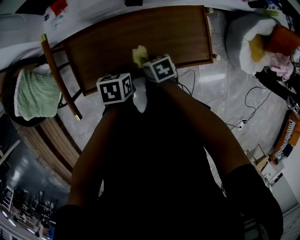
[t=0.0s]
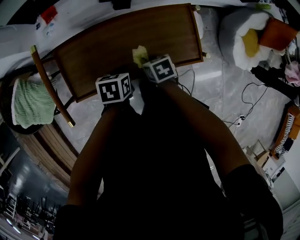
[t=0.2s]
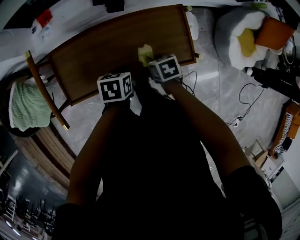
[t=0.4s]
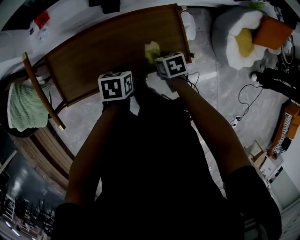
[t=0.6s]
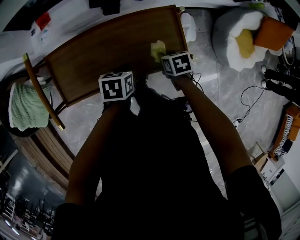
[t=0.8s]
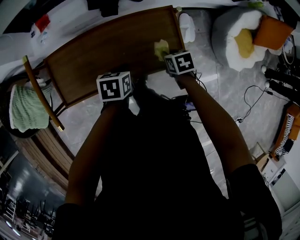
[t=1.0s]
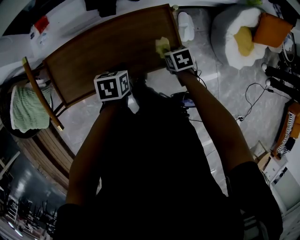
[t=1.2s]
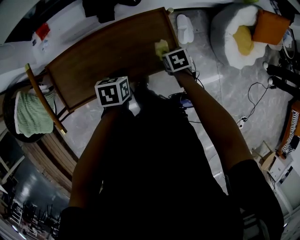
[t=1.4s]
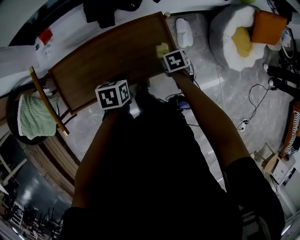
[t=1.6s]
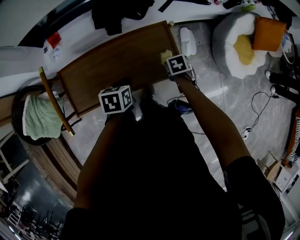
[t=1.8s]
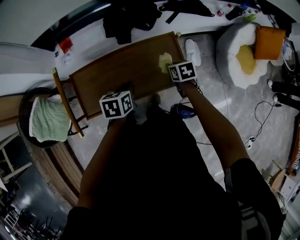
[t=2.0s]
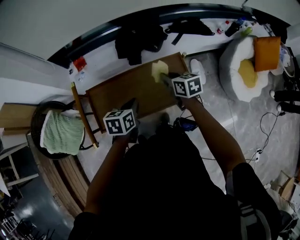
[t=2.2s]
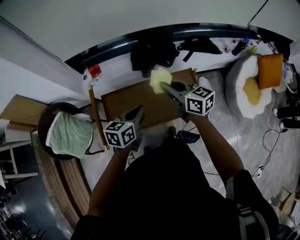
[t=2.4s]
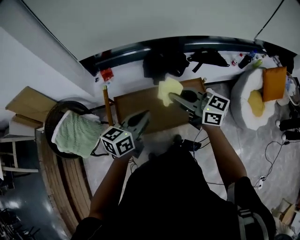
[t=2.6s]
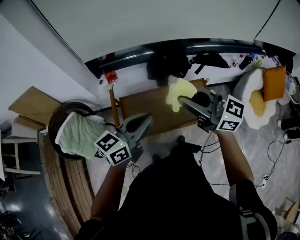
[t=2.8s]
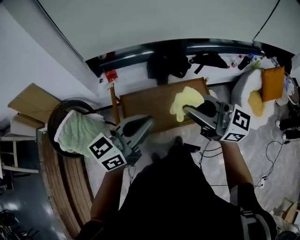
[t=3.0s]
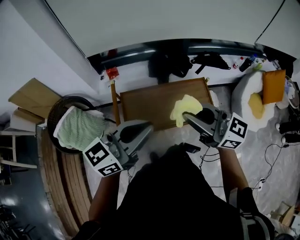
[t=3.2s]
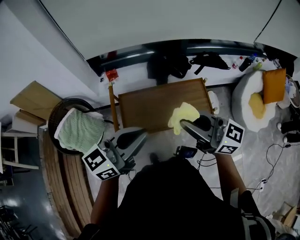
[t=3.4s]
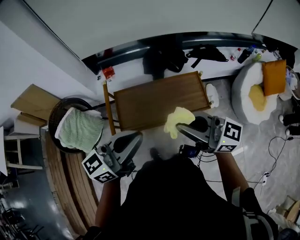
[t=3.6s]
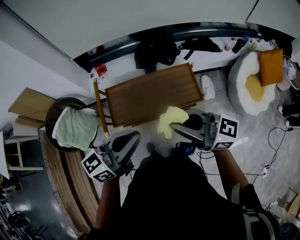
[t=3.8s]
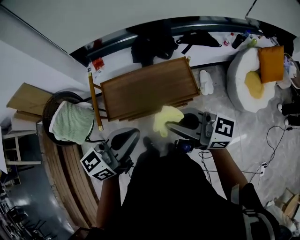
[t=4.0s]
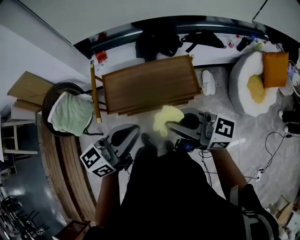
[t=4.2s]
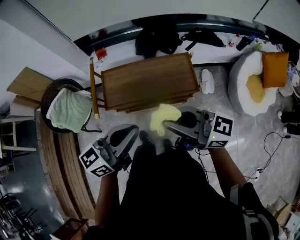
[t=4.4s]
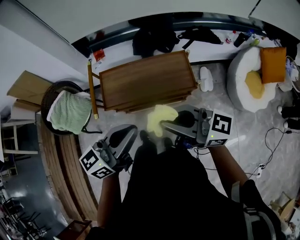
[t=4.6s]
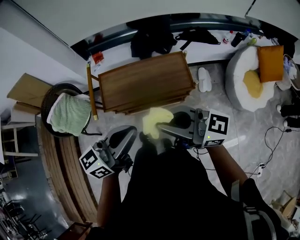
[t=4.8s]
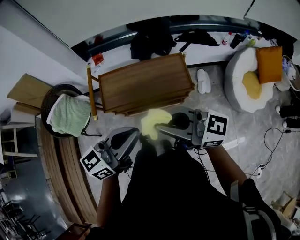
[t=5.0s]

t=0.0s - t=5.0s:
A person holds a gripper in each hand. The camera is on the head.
t=0.0s - t=1.6s: The left gripper is displaced to the right by some 15 cm. Meanwhile the right gripper moves to the right, roughly 25 cm.
t=1.6s - t=3.4s: The right gripper moves upward and to the left, approximately 50 cm, and tilts its fingers approximately 80 degrees upward. Meanwhile the left gripper shifts approximately 50 cm upward, to the left and backward, and angles its fingers upward, by approximately 60 degrees.
t=3.4s - t=5.0s: The right gripper shifts by about 15 cm, while the left gripper moves some 15 cm.

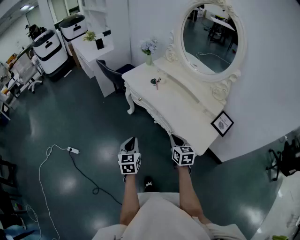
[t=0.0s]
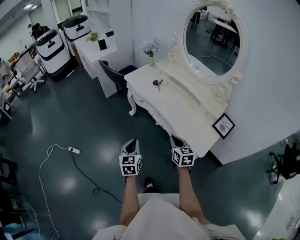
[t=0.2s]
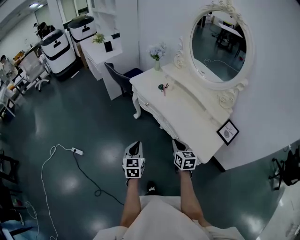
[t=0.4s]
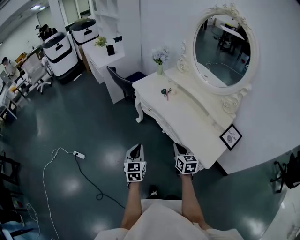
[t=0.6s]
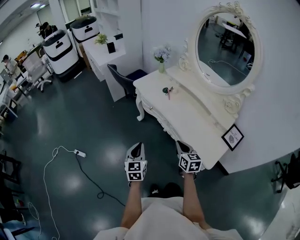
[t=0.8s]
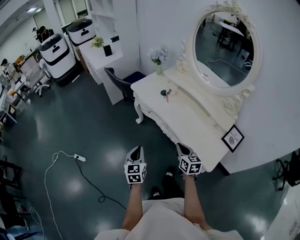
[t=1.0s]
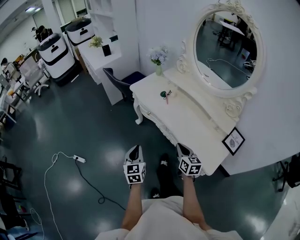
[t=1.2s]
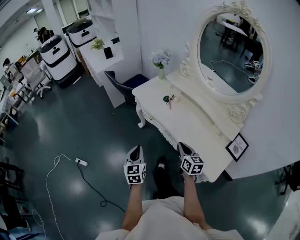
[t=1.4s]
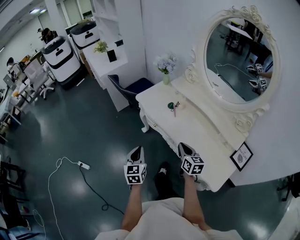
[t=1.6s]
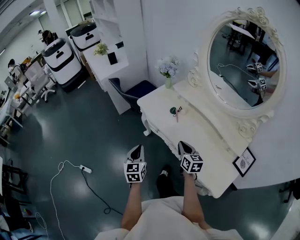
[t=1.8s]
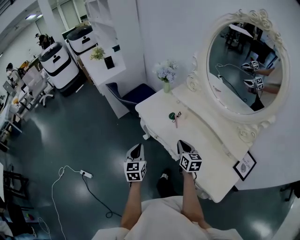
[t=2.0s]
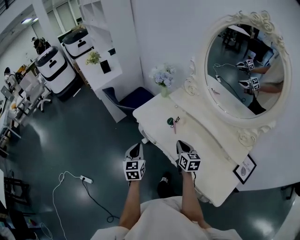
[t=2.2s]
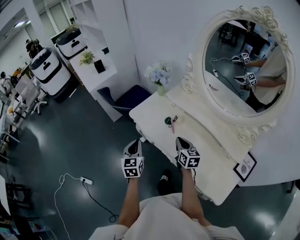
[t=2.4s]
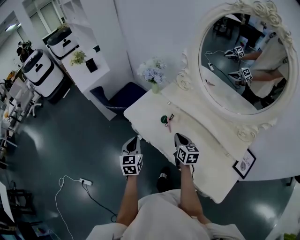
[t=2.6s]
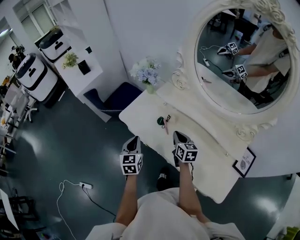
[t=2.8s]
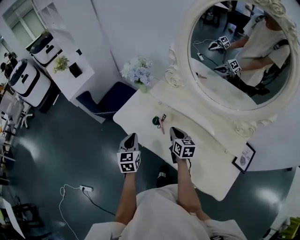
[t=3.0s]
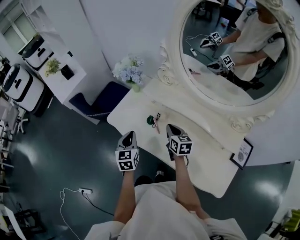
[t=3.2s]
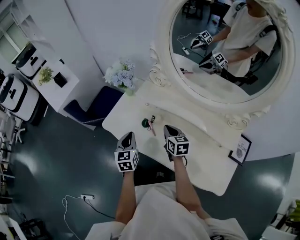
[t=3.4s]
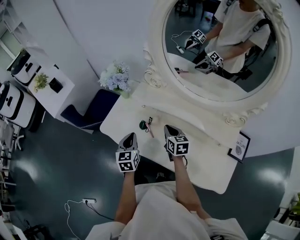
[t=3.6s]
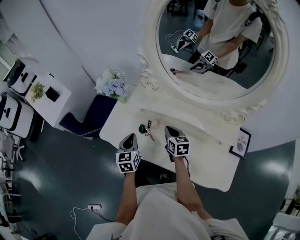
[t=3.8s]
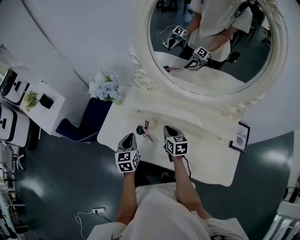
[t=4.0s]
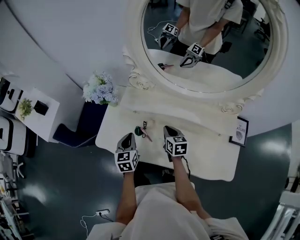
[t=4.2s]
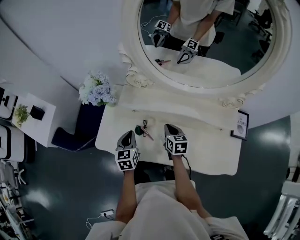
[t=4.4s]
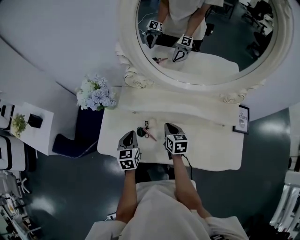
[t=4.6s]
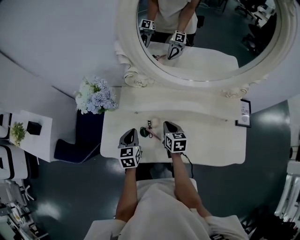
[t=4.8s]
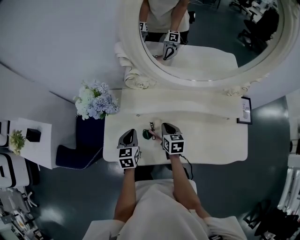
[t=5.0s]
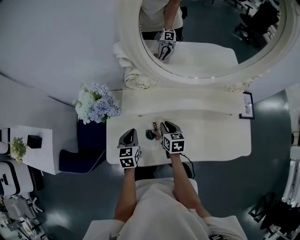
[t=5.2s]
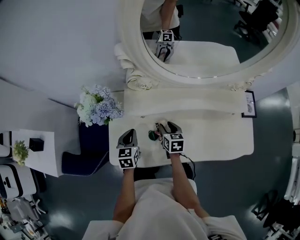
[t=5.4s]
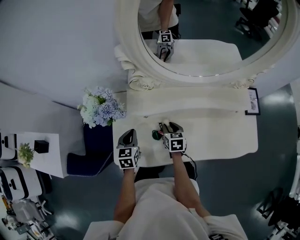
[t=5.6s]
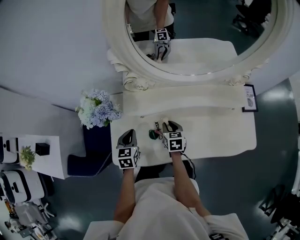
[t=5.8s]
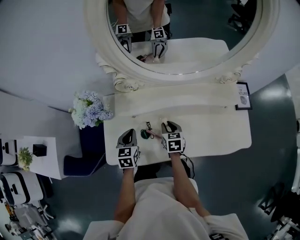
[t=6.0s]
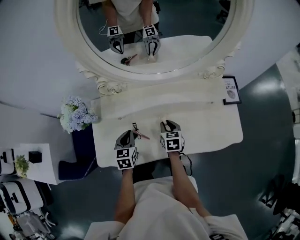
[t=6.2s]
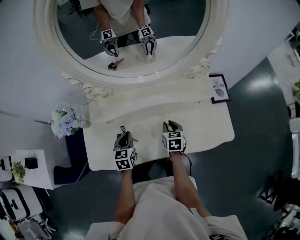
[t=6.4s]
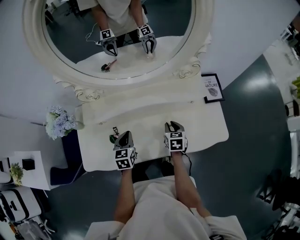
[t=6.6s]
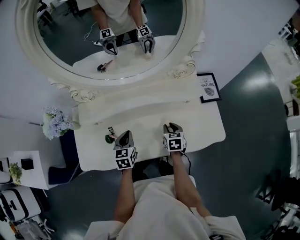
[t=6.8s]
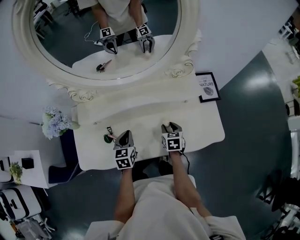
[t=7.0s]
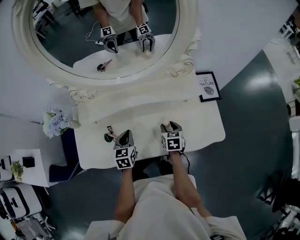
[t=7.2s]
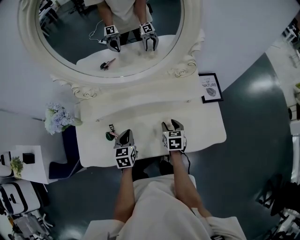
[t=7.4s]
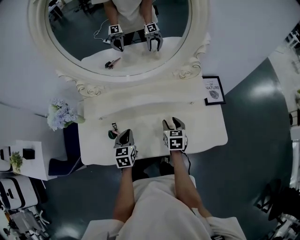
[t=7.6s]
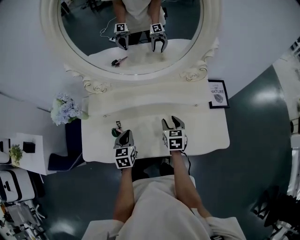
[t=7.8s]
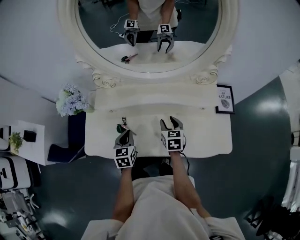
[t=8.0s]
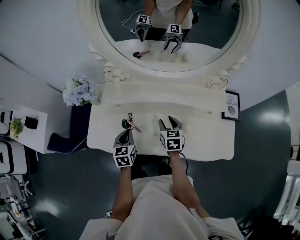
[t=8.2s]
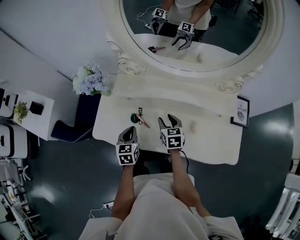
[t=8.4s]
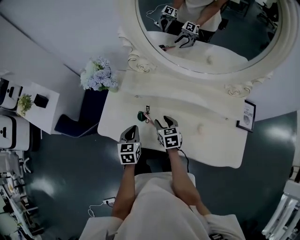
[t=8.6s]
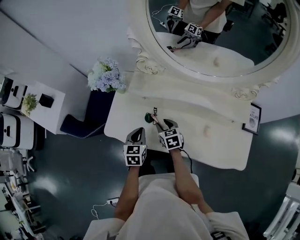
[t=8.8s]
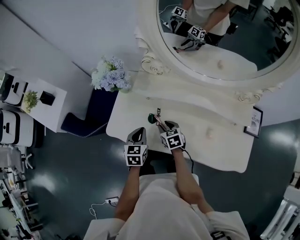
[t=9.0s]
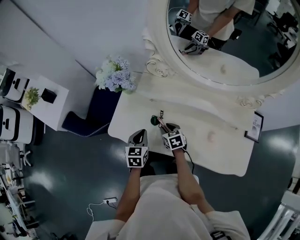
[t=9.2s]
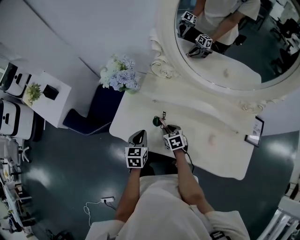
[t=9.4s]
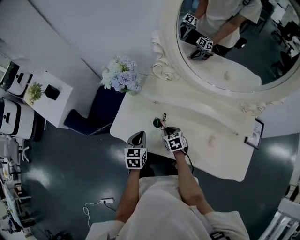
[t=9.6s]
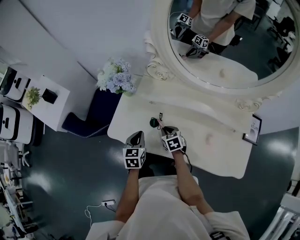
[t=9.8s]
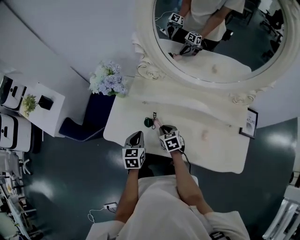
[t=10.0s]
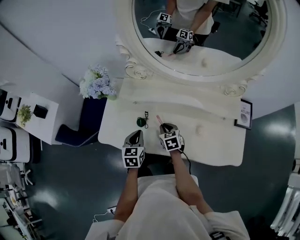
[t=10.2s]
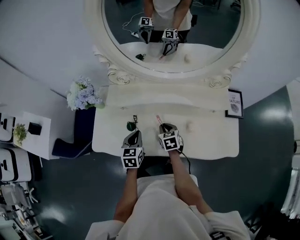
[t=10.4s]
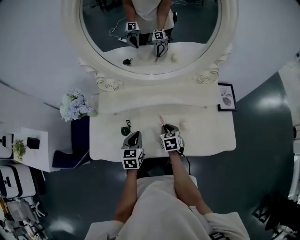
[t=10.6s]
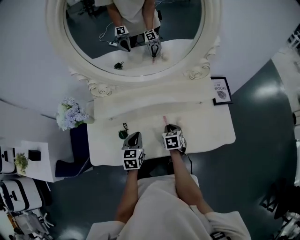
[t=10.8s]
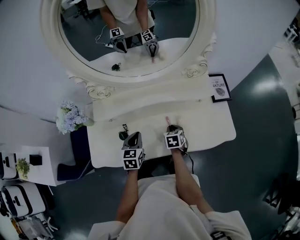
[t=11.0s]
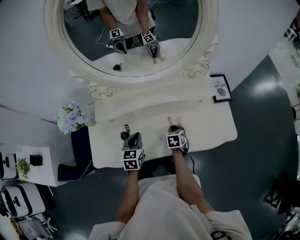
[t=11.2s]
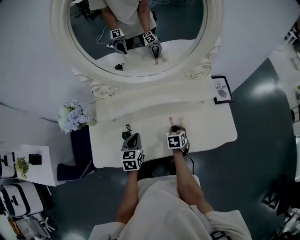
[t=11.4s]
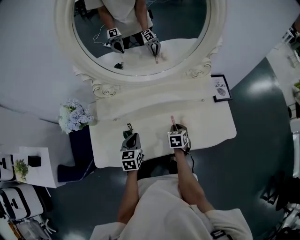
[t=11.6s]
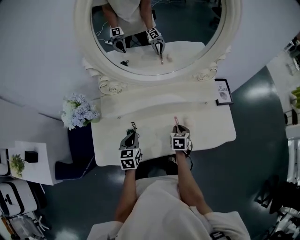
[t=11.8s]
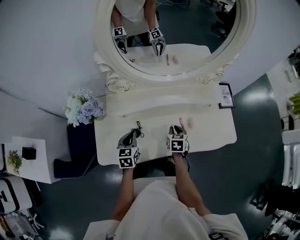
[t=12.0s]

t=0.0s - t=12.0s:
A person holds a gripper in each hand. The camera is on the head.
t=0.0s - t=1.6s: The two grippers go approximately 20 cm forward.
t=1.6s - t=3.0s: Both grippers move forward, roughly 30 cm.
t=3.0s - t=4.4s: The right gripper is displaced to the right and downward by approximately 10 cm, and rotates some 20 degrees. Meanwhile the left gripper is displaced forward and to the right by some 15 cm, and swivels roughly 20 degrees.
t=4.4s - t=6.0s: The right gripper moves approximately 10 cm to the left and comes back; the left gripper is displaced forward by some 5 cm, goes to the left and returns, approximately 10 cm each way, and changes its angle by some 20 degrees.
t=6.0s - t=7.6s: The grippers both shift to the right by some 20 cm. The right gripper opens its fingers.
t=7.6s - t=9.0s: The left gripper changes place by some 20 cm. Meanwhile the right gripper ends up approximately 30 cm from where it was, and turns by about 40 degrees.
t=9.0s - t=10.4s: The grippers both shift to the right by roughly 10 cm. The right gripper closes up.
t=10.4s - t=12.0s: The left gripper ends up roughly 10 cm from where it was. Meanwhile the right gripper changes its angle by about 30 degrees.

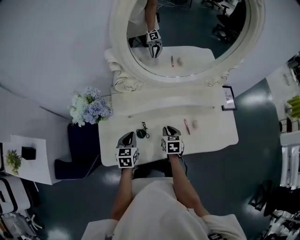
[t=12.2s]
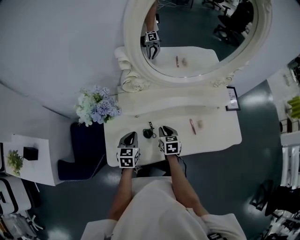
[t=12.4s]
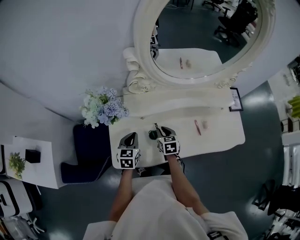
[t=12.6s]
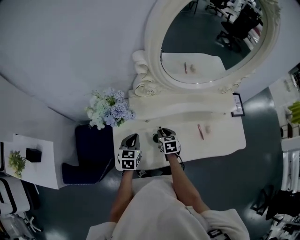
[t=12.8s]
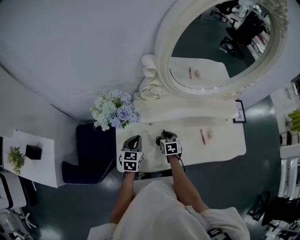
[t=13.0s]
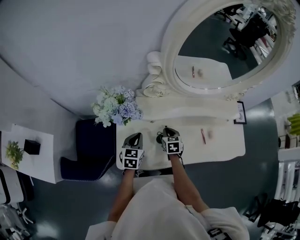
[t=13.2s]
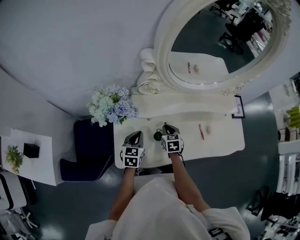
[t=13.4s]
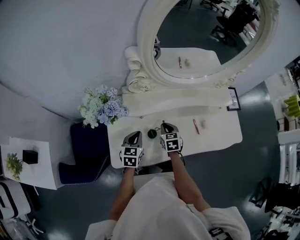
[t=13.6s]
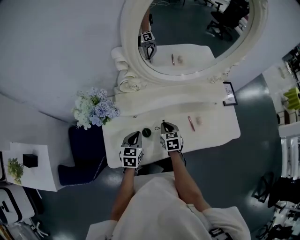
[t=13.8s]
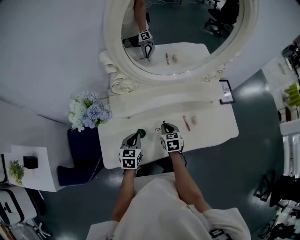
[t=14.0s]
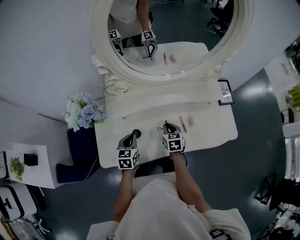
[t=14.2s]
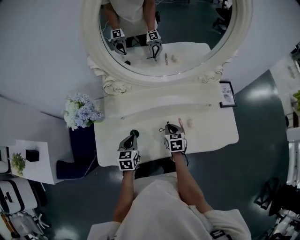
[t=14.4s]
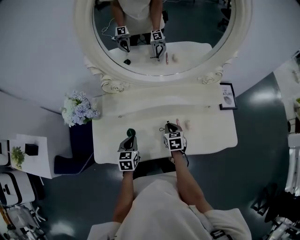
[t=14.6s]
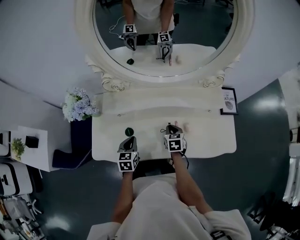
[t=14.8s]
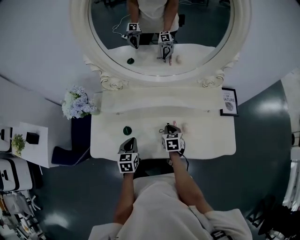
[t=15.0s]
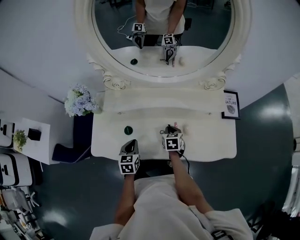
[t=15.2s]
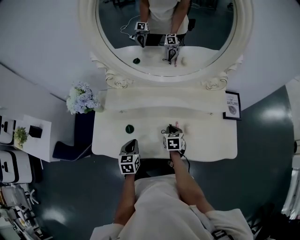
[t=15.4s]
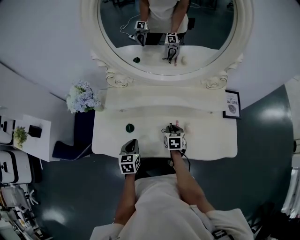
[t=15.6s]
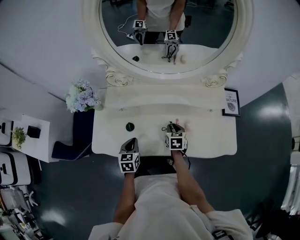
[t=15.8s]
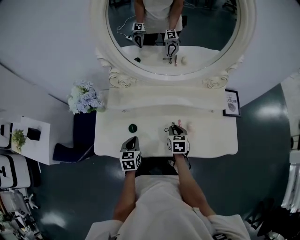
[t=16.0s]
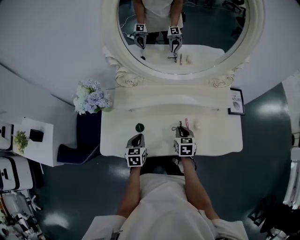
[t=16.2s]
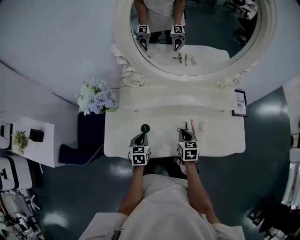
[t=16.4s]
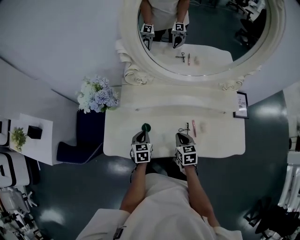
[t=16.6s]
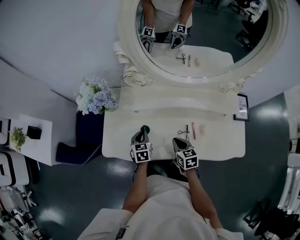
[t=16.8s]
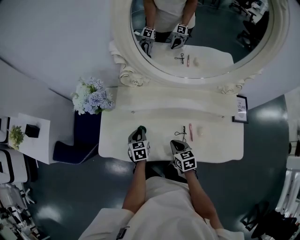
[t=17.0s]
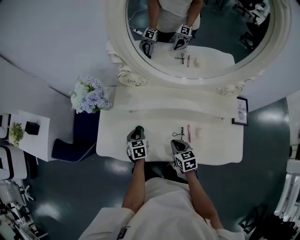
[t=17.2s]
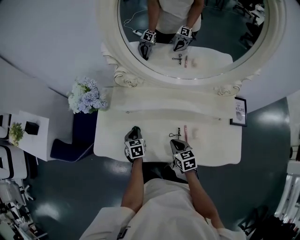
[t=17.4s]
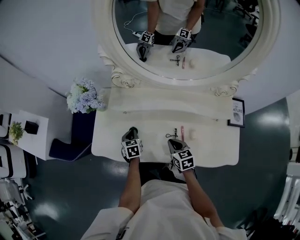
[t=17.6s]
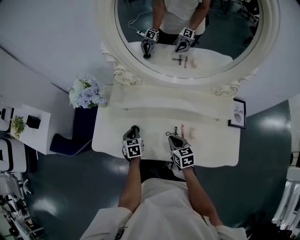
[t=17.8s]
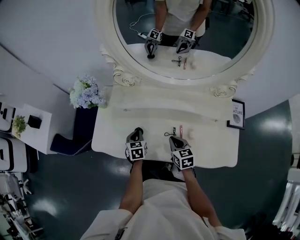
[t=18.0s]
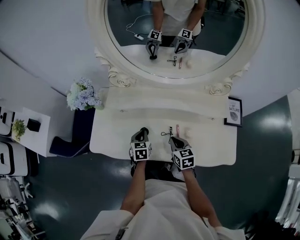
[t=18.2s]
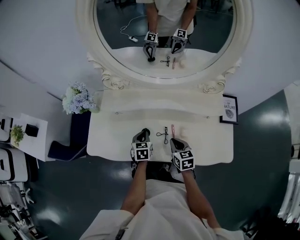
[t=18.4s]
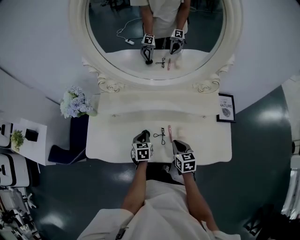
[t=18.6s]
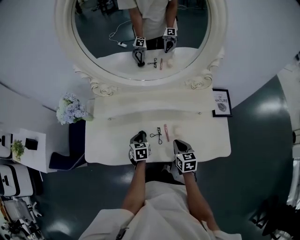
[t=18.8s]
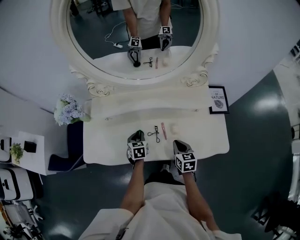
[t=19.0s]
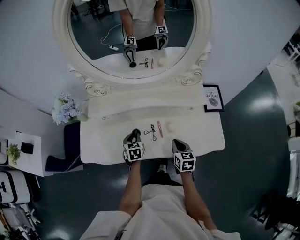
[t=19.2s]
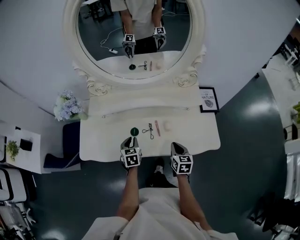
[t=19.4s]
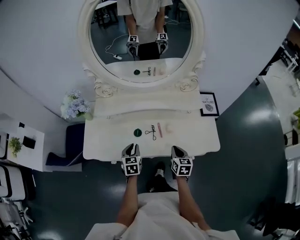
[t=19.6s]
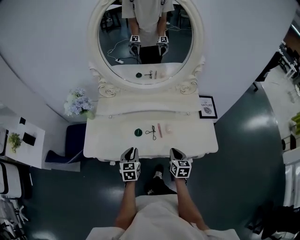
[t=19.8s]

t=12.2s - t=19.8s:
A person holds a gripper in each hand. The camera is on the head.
t=12.2s - t=13.8s: The left gripper moves roughly 10 cm to the left and comes back. Meanwhile the right gripper goes roughly 5 cm to the left.
t=13.8s - t=15.2s: The left gripper shifts some 15 cm to the right and backward, and turns by about 20 degrees. Meanwhile the right gripper moves to the right, some 15 cm.
t=15.2s - t=16.8s: The left gripper heads to the left and forward, covering roughly 10 cm; the right gripper moves to the left and backward, about 10 cm.
t=16.8s - t=18.2s: Both grippers travel together to the right, about 10 cm.
t=18.2s - t=19.8s: The right gripper travels backward and to the right by about 15 cm, and changes its angle by some 20 degrees; the left gripper is displaced backward and upward by about 20 cm.
